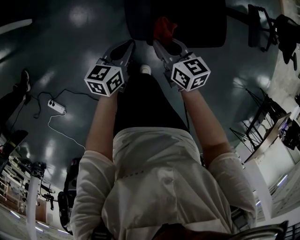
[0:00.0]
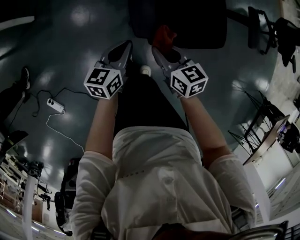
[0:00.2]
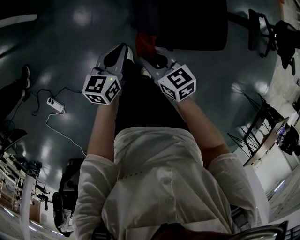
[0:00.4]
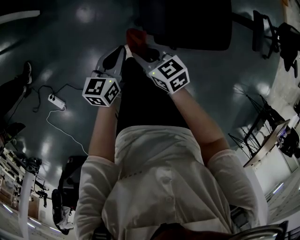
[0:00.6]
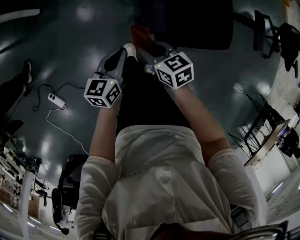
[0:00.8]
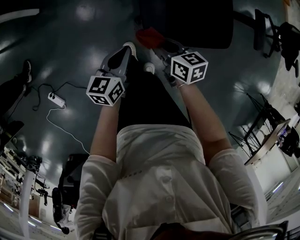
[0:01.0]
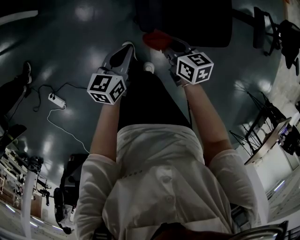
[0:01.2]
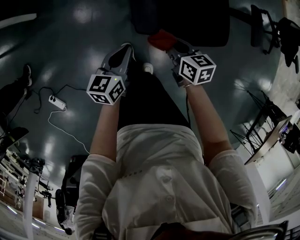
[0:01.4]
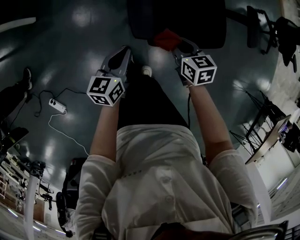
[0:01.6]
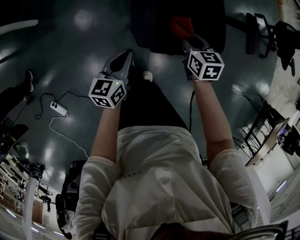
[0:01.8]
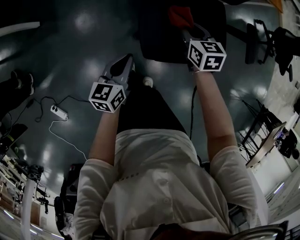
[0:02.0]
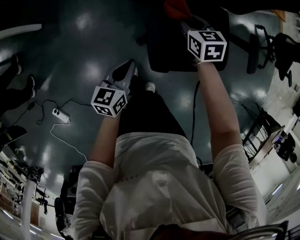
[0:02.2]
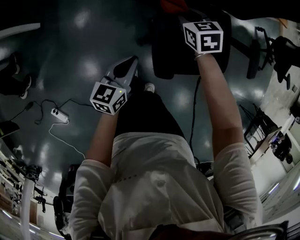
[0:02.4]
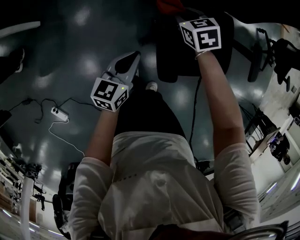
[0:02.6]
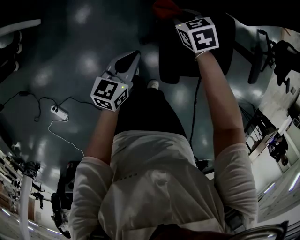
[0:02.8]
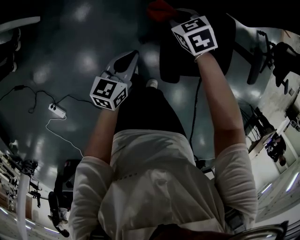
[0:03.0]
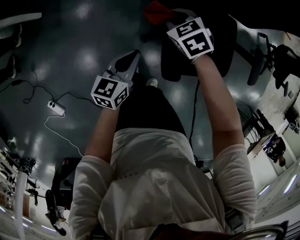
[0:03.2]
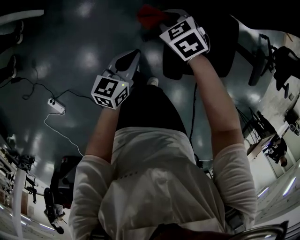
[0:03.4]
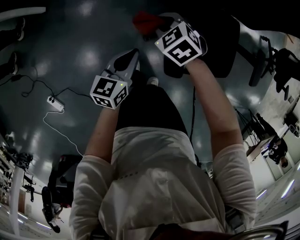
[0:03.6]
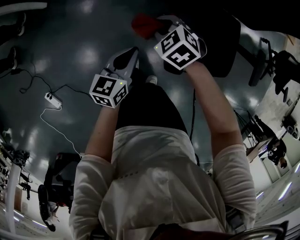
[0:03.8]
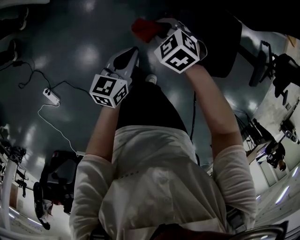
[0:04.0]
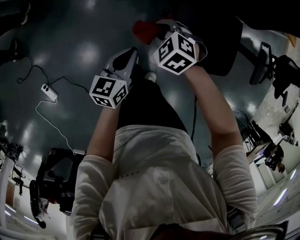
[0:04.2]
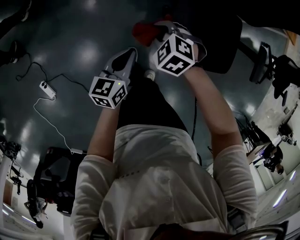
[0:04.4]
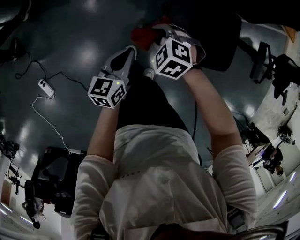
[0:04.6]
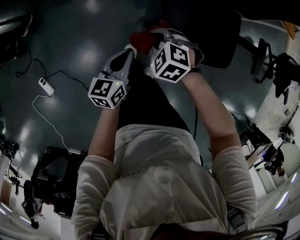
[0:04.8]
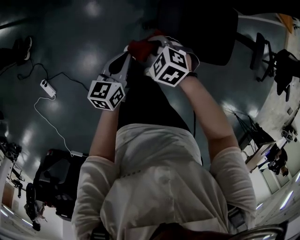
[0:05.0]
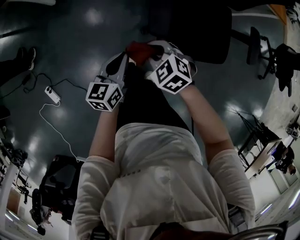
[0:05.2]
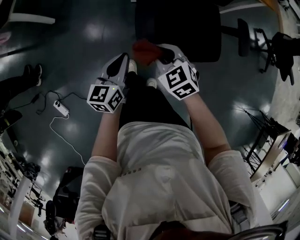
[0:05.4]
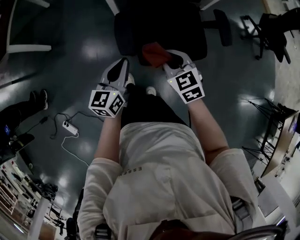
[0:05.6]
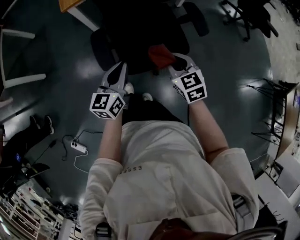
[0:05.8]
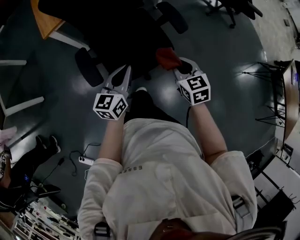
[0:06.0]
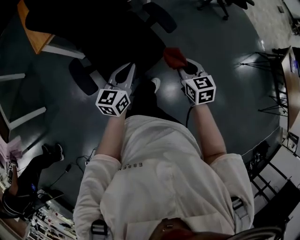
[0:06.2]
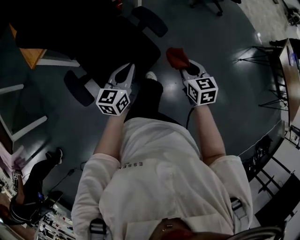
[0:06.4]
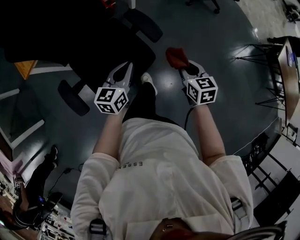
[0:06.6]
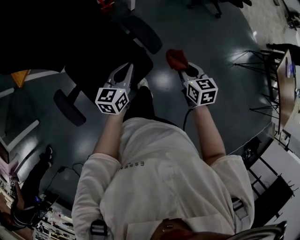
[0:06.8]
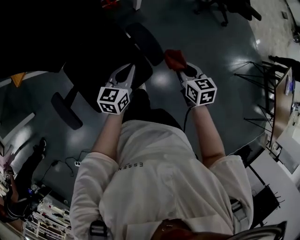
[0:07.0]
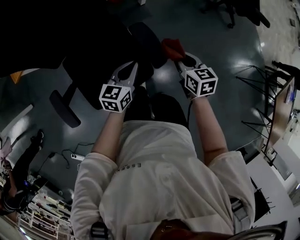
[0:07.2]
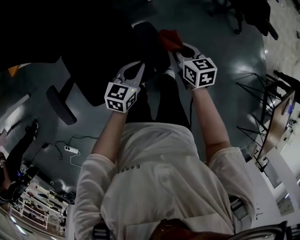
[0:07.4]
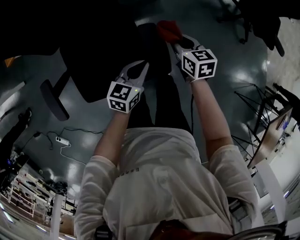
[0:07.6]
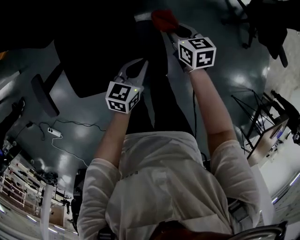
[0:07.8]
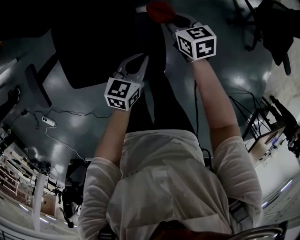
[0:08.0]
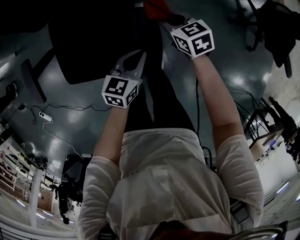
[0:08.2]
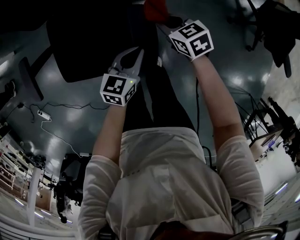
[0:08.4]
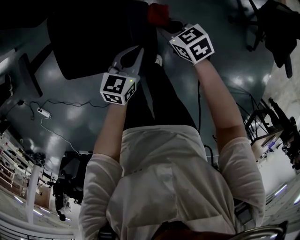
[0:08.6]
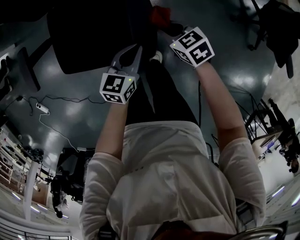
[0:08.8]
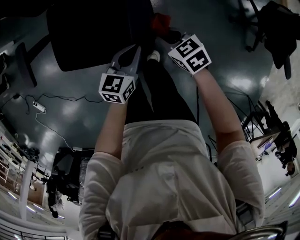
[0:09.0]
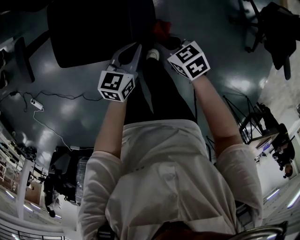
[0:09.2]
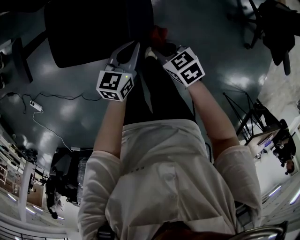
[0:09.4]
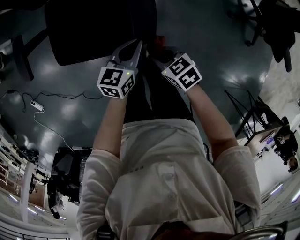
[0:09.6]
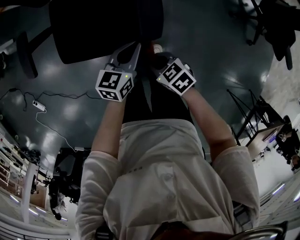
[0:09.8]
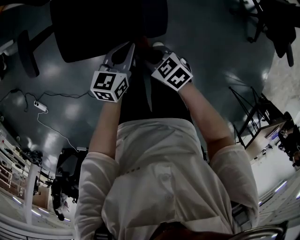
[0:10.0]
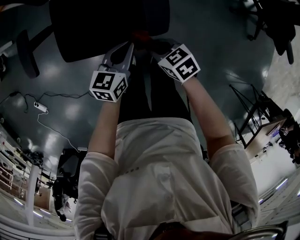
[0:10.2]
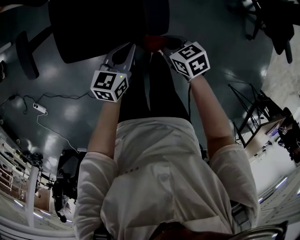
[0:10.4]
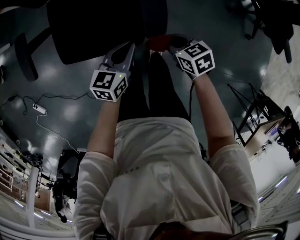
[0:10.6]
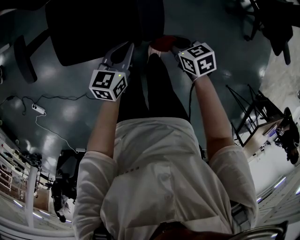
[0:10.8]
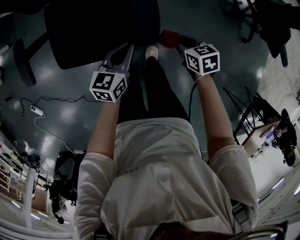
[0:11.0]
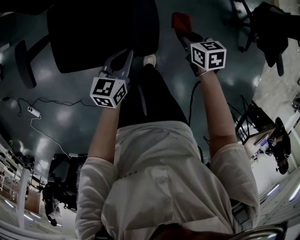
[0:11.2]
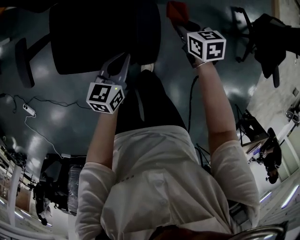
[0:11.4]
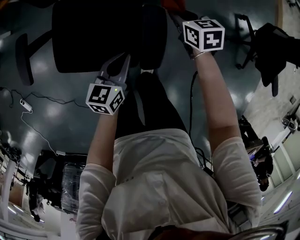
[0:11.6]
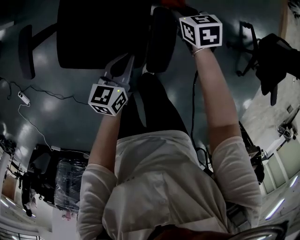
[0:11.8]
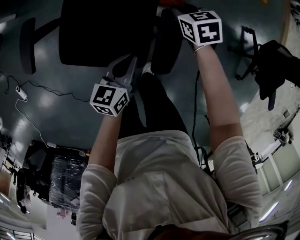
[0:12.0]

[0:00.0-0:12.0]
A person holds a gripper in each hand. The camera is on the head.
0:00.0 to 0:01.6: The right gripper goes to the left and returns, some 10 cm each way.
0:01.6 to 0:03.0: The left gripper heads forward and to the left, covering roughly 15 cm, while the right gripper is displaced forward and to the left by roughly 30 cm, and swivels about 40 degrees.
0:03.0 to 0:04.4: The left gripper travels backward by some 10 cm, while the right gripper travels backward and to the left by some 20 cm, and swivels some 40 degrees.
0:04.4 to 0:06.0: The right gripper ends up some 50 cm from where it was, and rolls clockwise, seen from behind, by roughly 70 degrees, while the left gripper moves approximately 35 cm, and swivels some 40 degrees.
0:06.0 to 0:07.6: The right gripper moves forward, about 35 cm, while the left gripper is displaced forward and to the right by about 35 cm.
0:07.6 to 0:09.0: The right gripper shifts by approximately 10 cm, and swivels roughly 40 degrees, while the left gripper moves about 5 cm, and turns by roughly 20 degrees.
0:09.0 to 0:10.4: The left gripper is displaced to the left by roughly 10 cm. Meanwhile the right gripper travels backward and to the left by approximately 10 cm.
0:10.4 to 0:12.0: The left gripper heads forward, covering some 10 cm. The right gripper shifts some 30 cm forward.

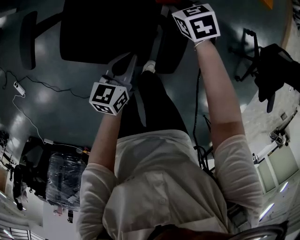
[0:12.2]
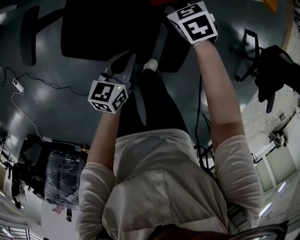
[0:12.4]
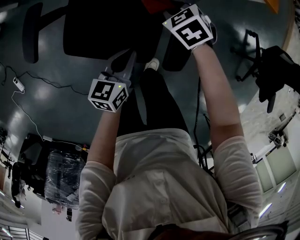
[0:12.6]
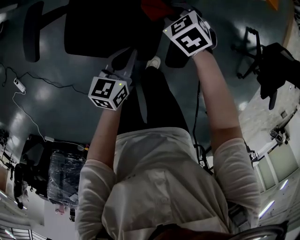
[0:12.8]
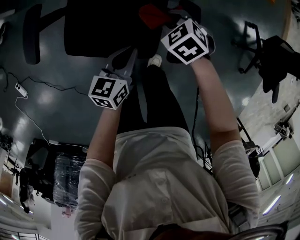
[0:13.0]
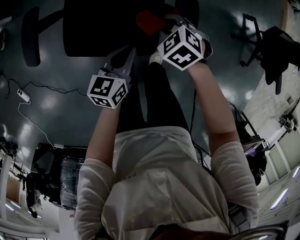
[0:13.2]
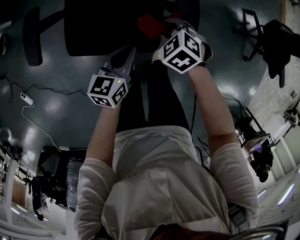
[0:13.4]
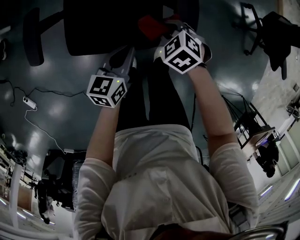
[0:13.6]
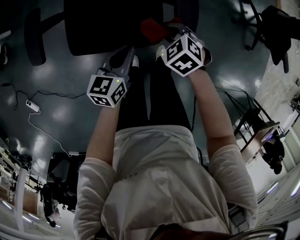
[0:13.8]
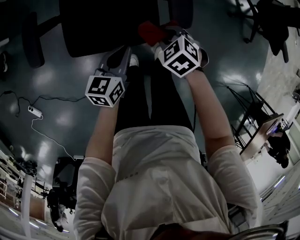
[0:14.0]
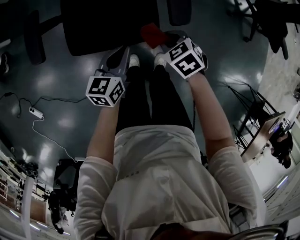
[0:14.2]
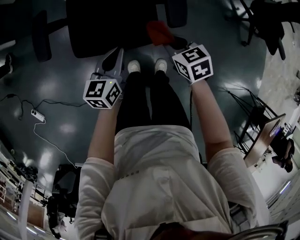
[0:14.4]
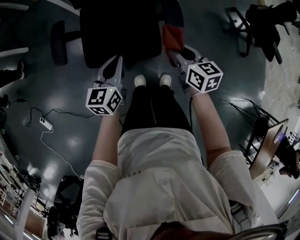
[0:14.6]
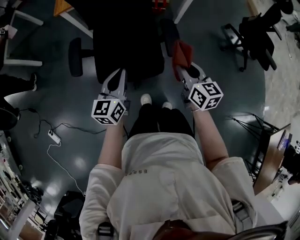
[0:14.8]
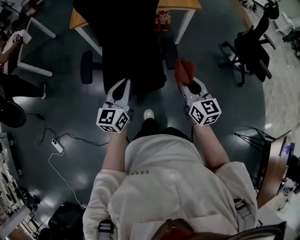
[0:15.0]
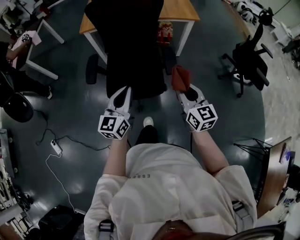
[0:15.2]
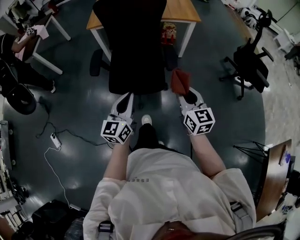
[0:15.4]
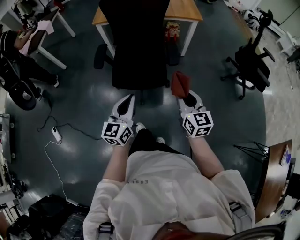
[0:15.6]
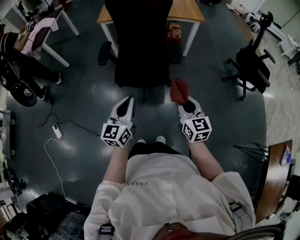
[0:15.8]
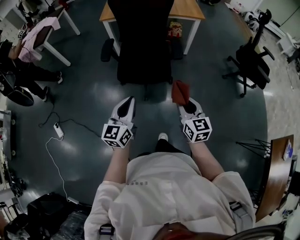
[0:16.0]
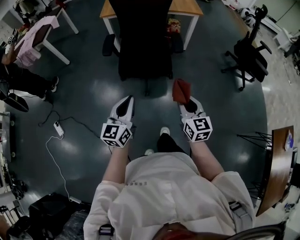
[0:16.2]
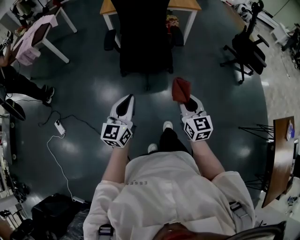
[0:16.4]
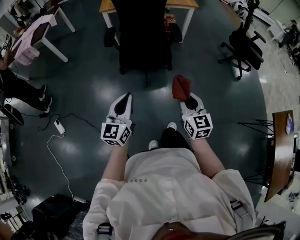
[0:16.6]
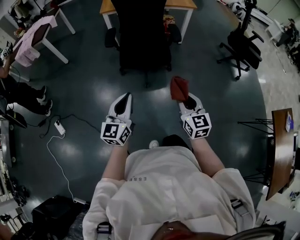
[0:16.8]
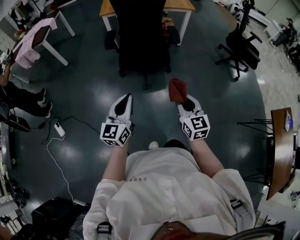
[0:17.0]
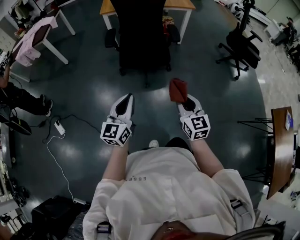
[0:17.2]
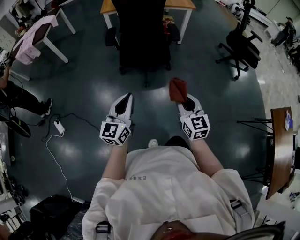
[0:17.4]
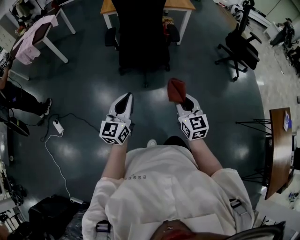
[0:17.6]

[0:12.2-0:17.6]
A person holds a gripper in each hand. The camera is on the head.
0:12.2 to 0:13.6: The left gripper shifts approximately 10 cm to the left and backward. Meanwhile the right gripper moves backward and to the left, some 20 cm.
0:13.6 to 0:15.0: The right gripper is displaced upward and backward by some 35 cm, and tips its fingers upward by about 60 degrees, while the left gripper goes roughly 25 cm upward, and rotates some 30 degrees.
0:15.0 to 0:16.2: Both grippers travel together backward, about 30 cm.
0:16.2 to 0:17.6: The two grippers go about 15 cm backward.

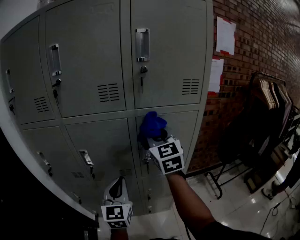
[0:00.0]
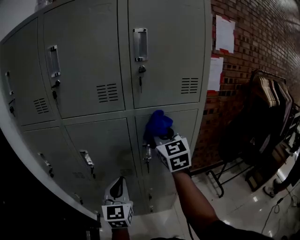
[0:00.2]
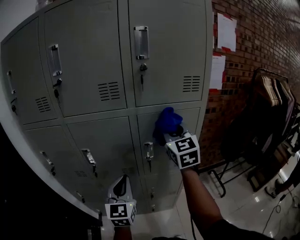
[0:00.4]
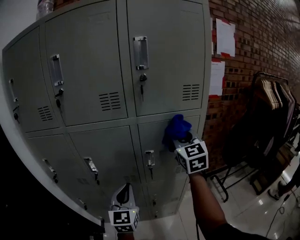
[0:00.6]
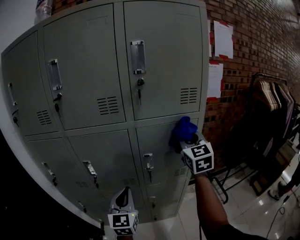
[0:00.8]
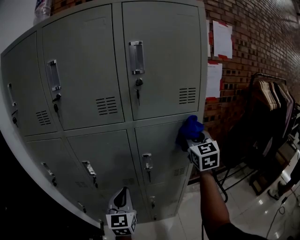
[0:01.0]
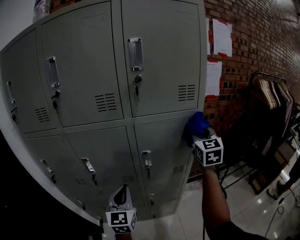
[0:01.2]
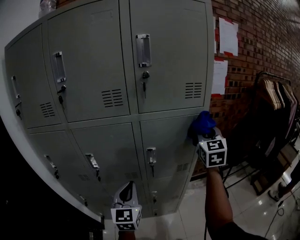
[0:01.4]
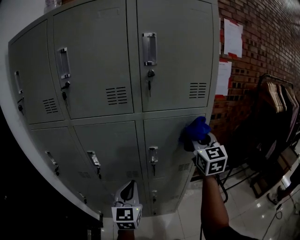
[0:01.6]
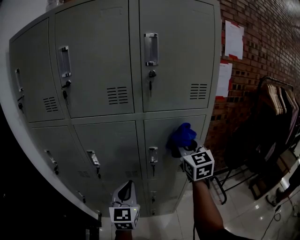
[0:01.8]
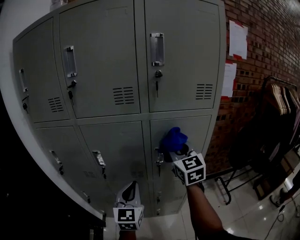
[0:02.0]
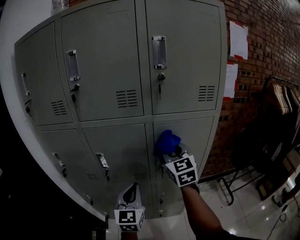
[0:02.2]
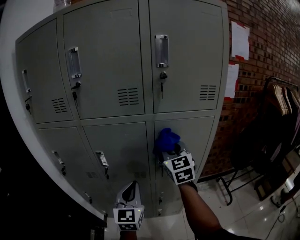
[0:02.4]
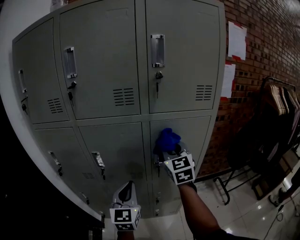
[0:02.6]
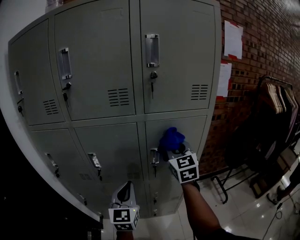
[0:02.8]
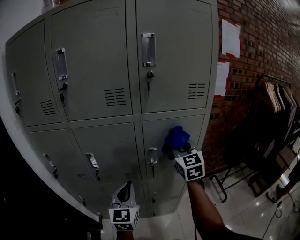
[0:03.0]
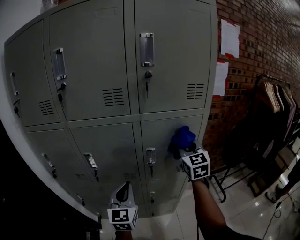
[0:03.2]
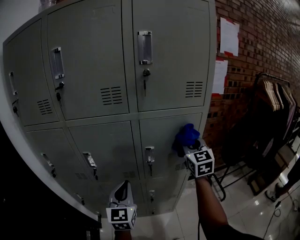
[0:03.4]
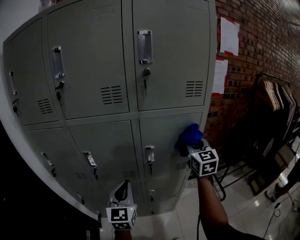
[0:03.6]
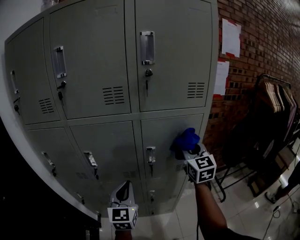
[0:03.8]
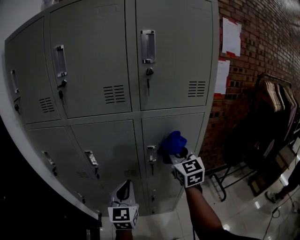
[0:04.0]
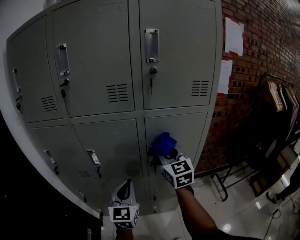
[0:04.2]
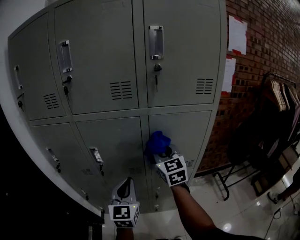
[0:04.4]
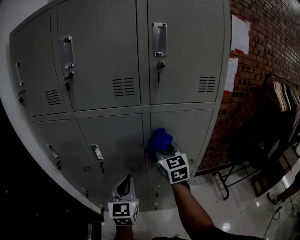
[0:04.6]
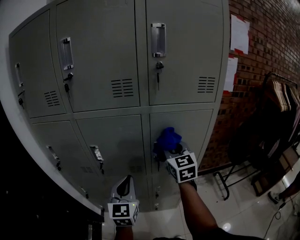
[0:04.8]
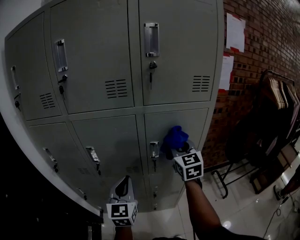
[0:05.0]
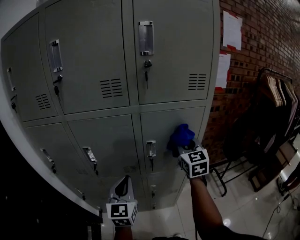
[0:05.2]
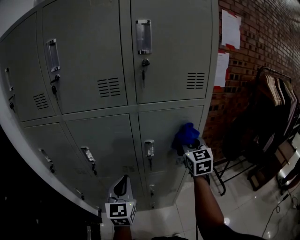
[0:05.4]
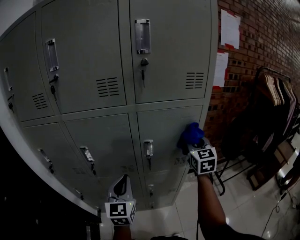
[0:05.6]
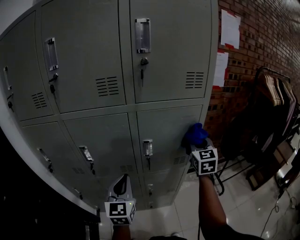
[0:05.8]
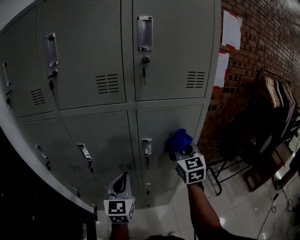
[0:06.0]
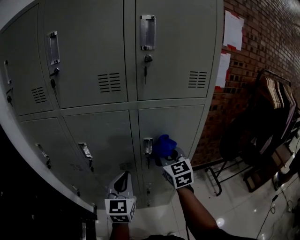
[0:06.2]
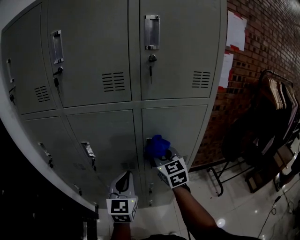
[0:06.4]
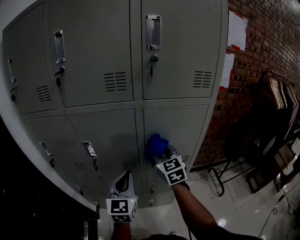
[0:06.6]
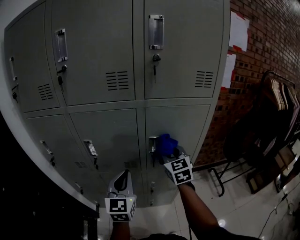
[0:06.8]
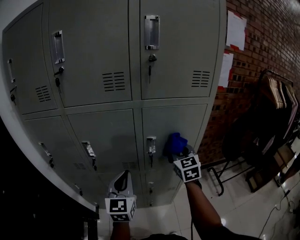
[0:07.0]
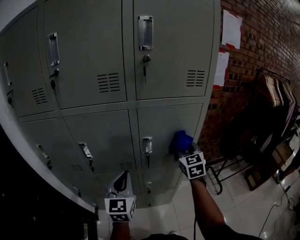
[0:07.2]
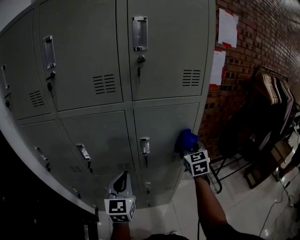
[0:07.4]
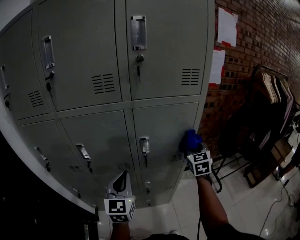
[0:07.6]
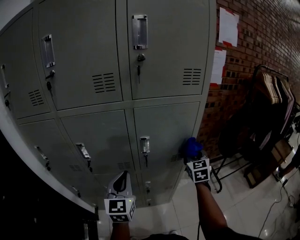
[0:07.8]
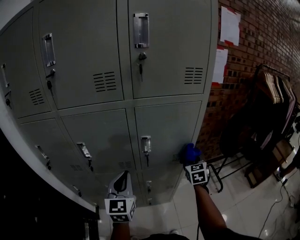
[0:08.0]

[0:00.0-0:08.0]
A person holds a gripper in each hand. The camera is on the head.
0:00.0 to 0:01.6: The right gripper shifts about 15 cm to the right.
0:01.6 to 0:03.2: The right gripper heads downward, covering approximately 5 cm, and moves some 15 cm to the left and comes back.
0:03.2 to 0:04.8: The right gripper moves left and right over about 20 cm, changing direction 2 times.
0:04.8 to 0:06.4: The right gripper travels to the right and back again, about 15 cm each way.
0:06.4 to 0:08.0: The right gripper travels to the right and downward by some 25 cm, and rotates some 30 degrees.
